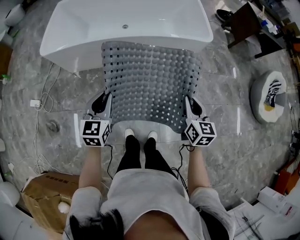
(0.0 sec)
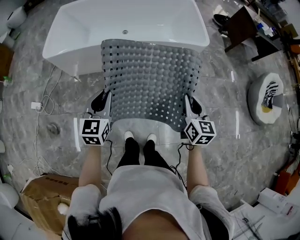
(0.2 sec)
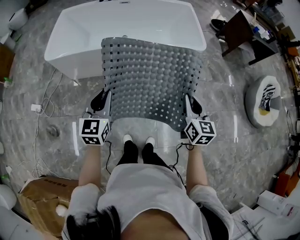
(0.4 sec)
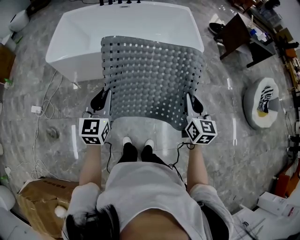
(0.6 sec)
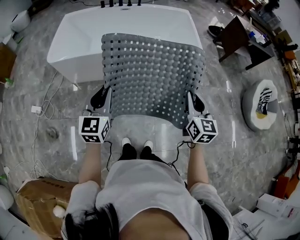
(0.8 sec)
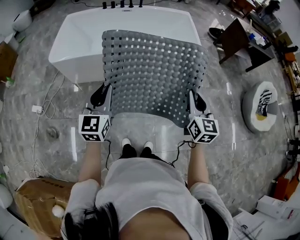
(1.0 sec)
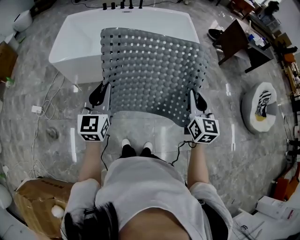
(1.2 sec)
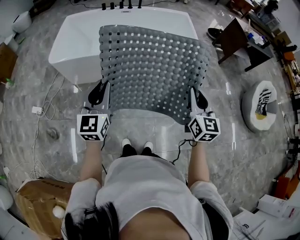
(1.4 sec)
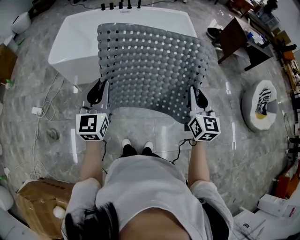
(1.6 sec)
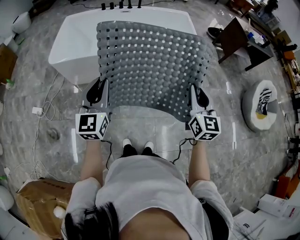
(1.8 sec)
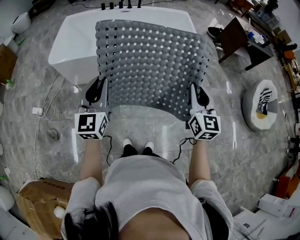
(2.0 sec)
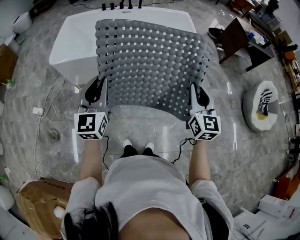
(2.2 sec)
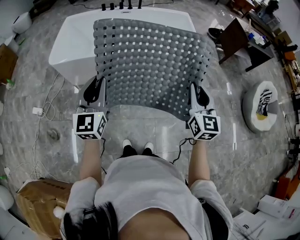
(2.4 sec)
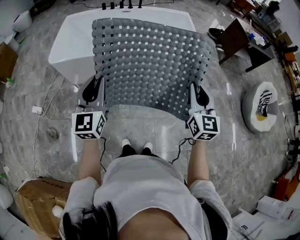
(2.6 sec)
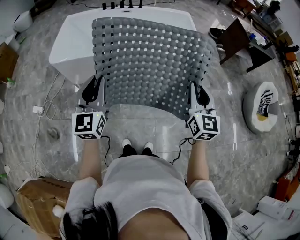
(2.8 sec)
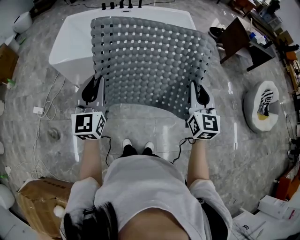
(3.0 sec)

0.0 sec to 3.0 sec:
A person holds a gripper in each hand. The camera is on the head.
0.0 sec to 1.6 sec: The grippers both shift upward by about 20 cm. The left gripper rotates roughly 20 degrees.
1.6 sec to 3.0 sec: The grippers make only small movements.

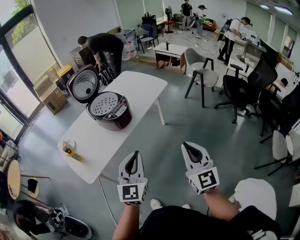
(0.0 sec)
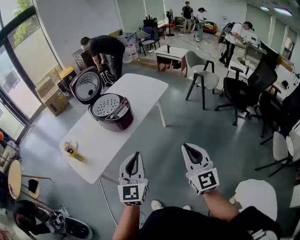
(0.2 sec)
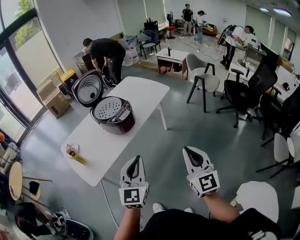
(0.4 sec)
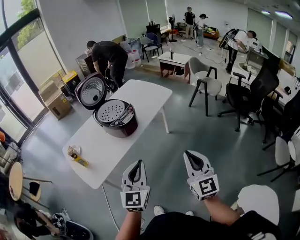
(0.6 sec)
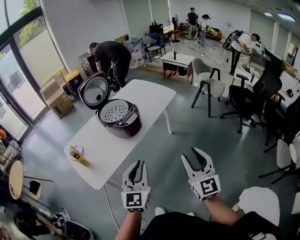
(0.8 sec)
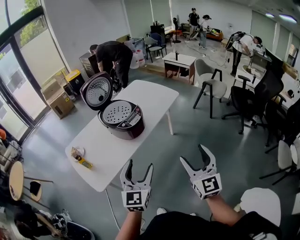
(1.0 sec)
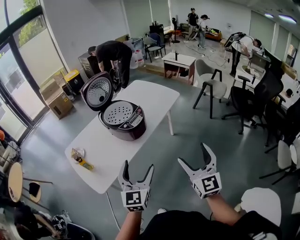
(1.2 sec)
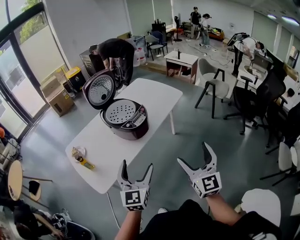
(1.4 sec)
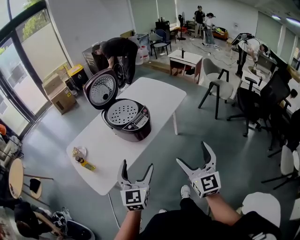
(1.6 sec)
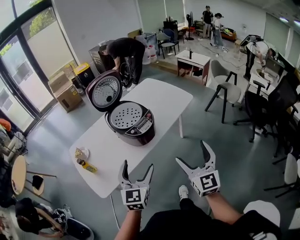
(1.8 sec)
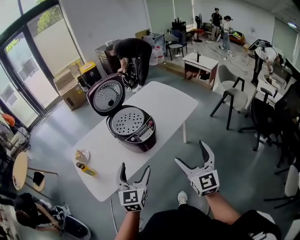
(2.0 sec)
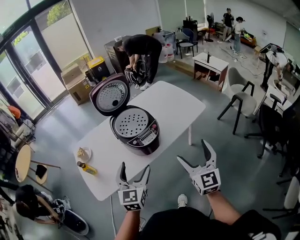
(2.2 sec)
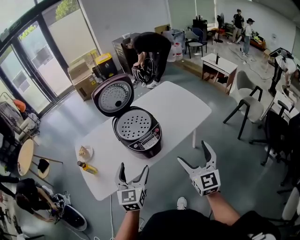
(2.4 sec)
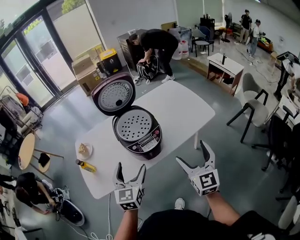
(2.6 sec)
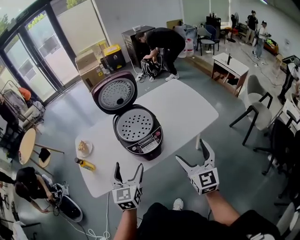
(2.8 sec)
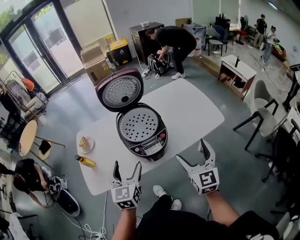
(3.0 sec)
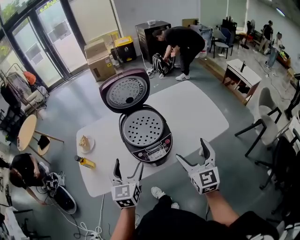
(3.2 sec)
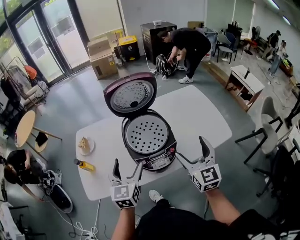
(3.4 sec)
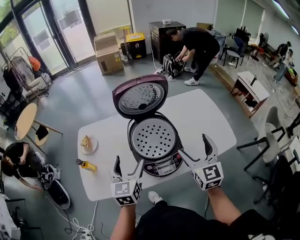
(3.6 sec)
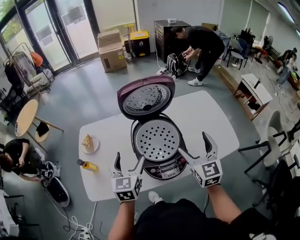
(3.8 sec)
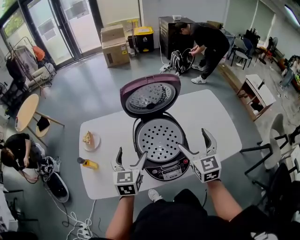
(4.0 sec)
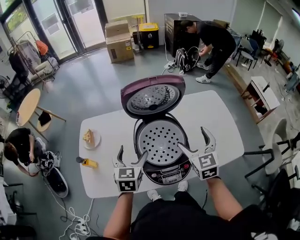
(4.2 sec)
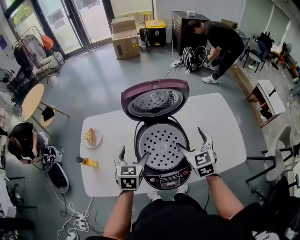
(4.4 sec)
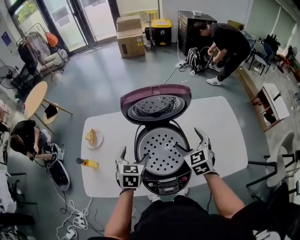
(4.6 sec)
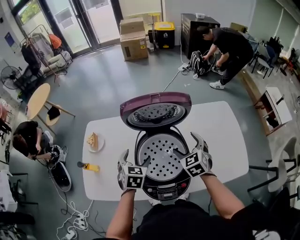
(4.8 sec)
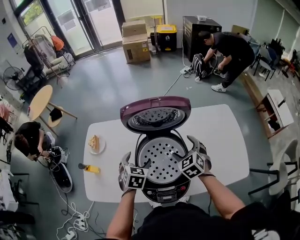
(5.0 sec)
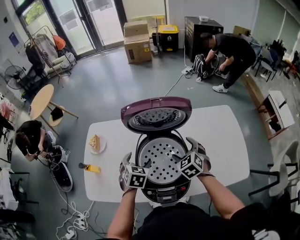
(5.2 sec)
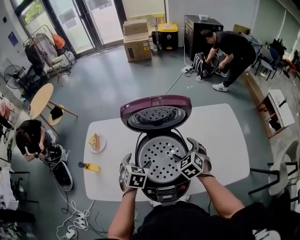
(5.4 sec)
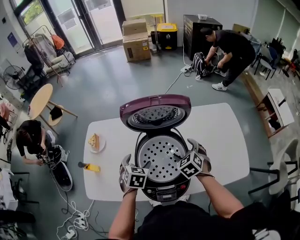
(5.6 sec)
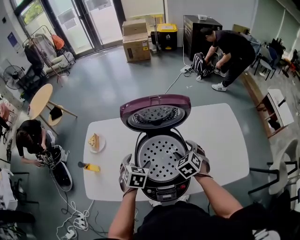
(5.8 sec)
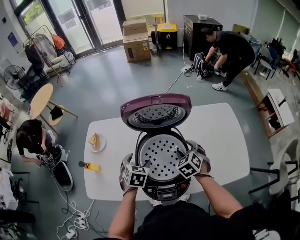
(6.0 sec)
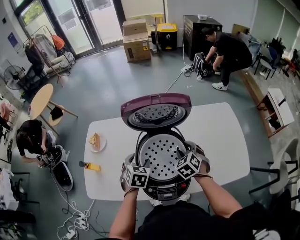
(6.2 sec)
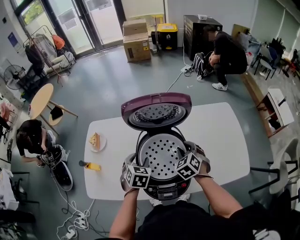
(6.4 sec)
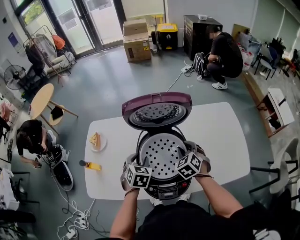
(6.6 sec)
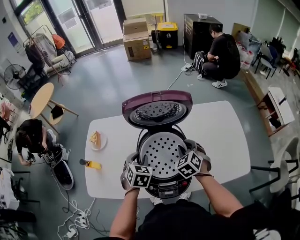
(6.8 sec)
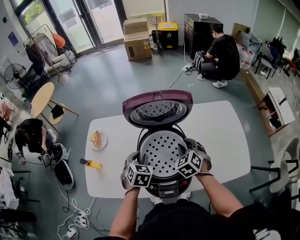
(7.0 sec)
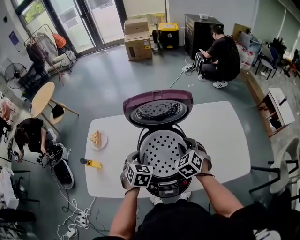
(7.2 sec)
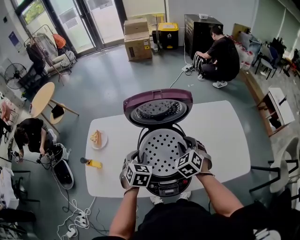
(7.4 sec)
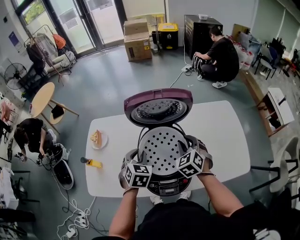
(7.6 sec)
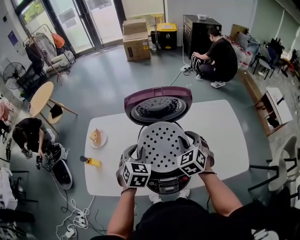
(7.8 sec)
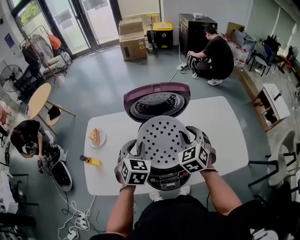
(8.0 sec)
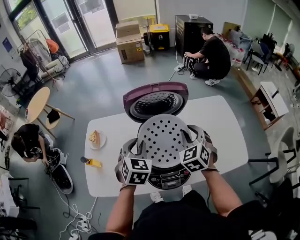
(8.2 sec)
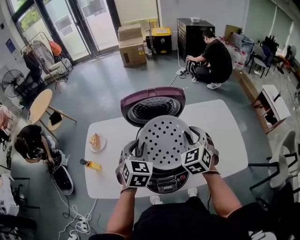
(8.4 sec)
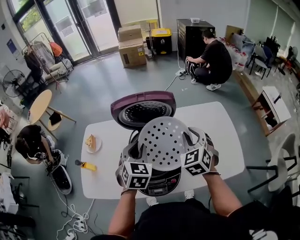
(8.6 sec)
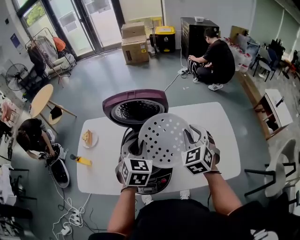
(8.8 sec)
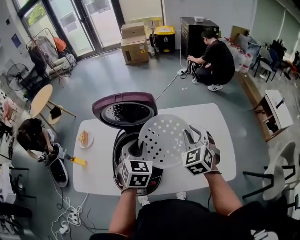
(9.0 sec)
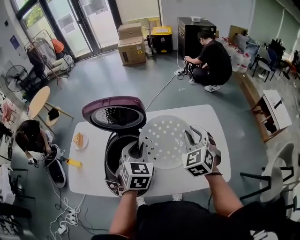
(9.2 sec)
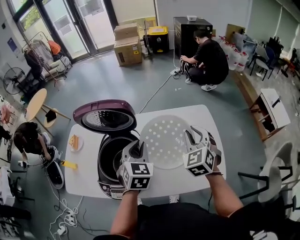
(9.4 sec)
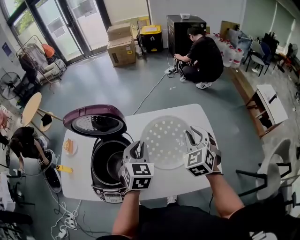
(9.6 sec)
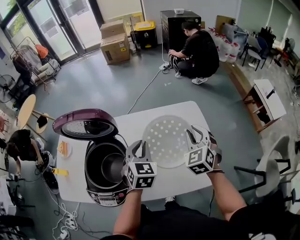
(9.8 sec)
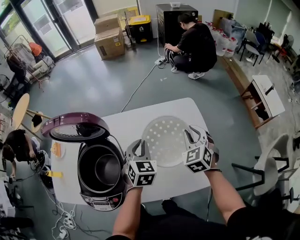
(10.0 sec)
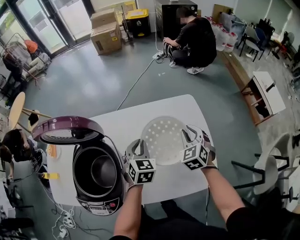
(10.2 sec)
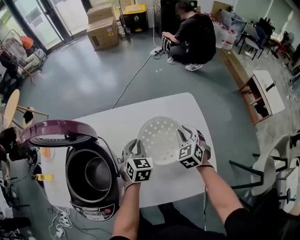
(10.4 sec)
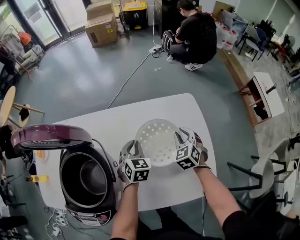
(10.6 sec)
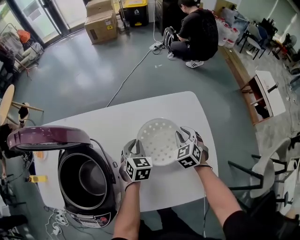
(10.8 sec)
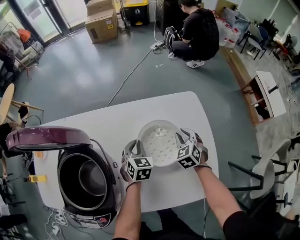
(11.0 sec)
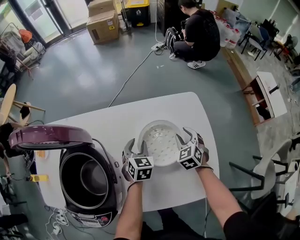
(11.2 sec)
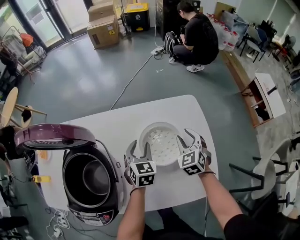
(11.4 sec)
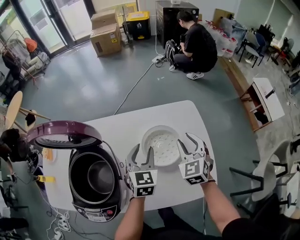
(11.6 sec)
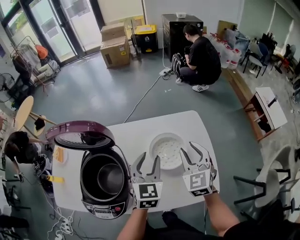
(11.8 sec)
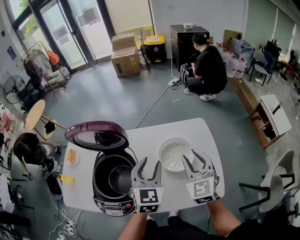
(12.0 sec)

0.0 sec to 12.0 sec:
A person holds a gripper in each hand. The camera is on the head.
0.0 sec to 1.6 sec: The left gripper goes some 15 cm to the left and forward, and opens. Meanwhile the right gripper shifts roughly 10 cm forward and to the left, and opens up.
1.6 sec to 3.0 sec: The left gripper ends up some 20 cm from where it was, and swivels approximately 30 degrees; the right gripper moves approximately 30 cm, and changes its angle by roughly 30 degrees.
3.0 sec to 4.4 sec: The grippers both shift forward by roughly 25 cm. The left gripper turns by some 20 degrees; the right gripper turns by some 30 degrees.
4.4 sec to 6.0 sec: The left gripper shifts some 5 cm downward. The right gripper is displaced downward by about 10 cm, turns by about 30 degrees, and closes up.
6.0 sec to 7.6 sec: The two grippers go roughly 5 cm upward. The left gripper closes.
7.6 sec to 9.0 sec: Both grippers travel together to the right and upward, roughly 20 cm.
9.0 sec to 10.4 sec: Both grippers travel together downward, to the right and forward, approximately 30 cm.
10.4 sec to 12.0 sec: The grippers both shift upward and backward by some 25 cm. The right gripper changes its angle by roughly 30 degrees.

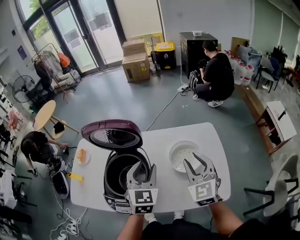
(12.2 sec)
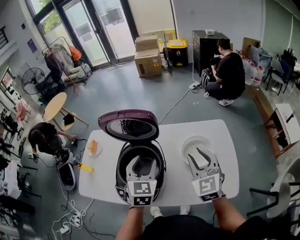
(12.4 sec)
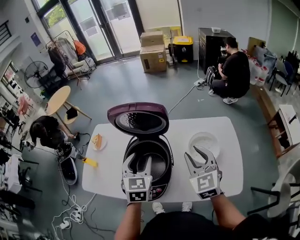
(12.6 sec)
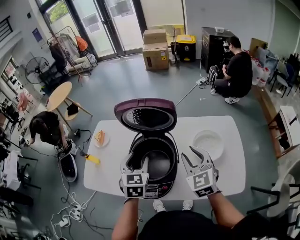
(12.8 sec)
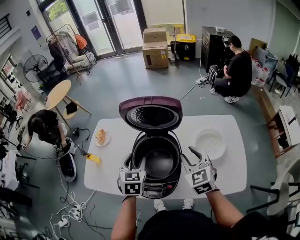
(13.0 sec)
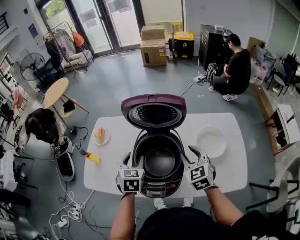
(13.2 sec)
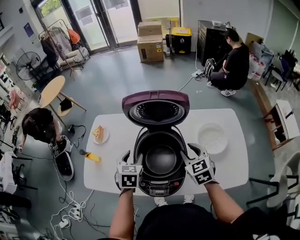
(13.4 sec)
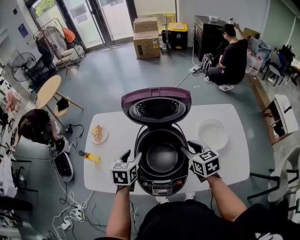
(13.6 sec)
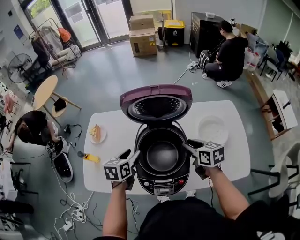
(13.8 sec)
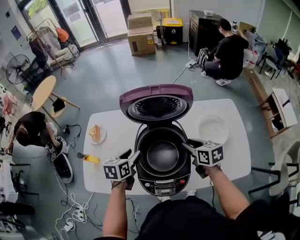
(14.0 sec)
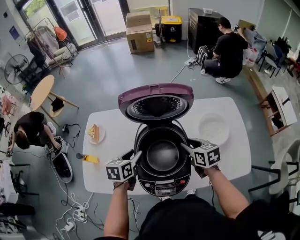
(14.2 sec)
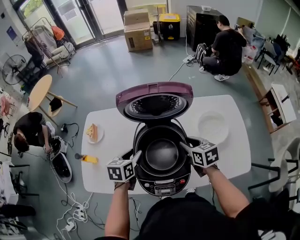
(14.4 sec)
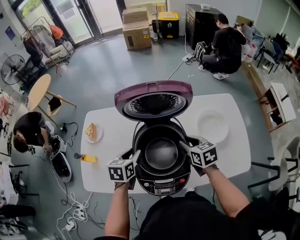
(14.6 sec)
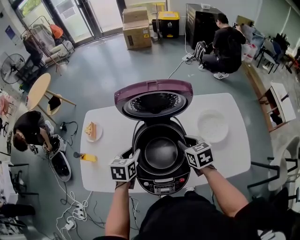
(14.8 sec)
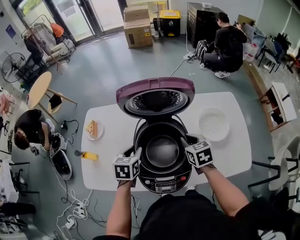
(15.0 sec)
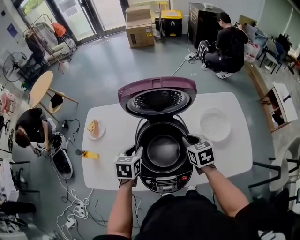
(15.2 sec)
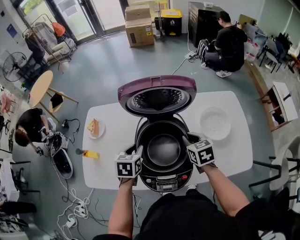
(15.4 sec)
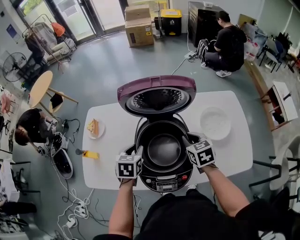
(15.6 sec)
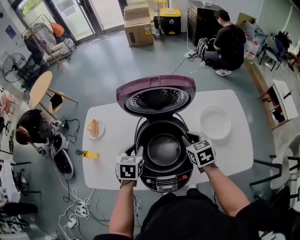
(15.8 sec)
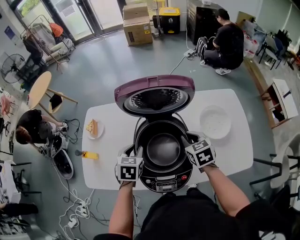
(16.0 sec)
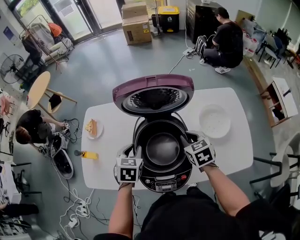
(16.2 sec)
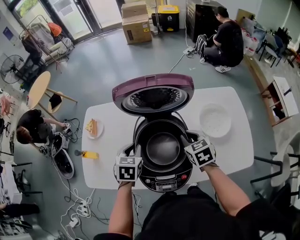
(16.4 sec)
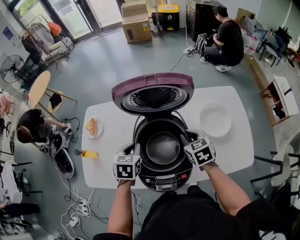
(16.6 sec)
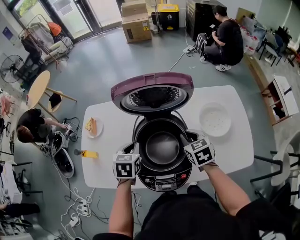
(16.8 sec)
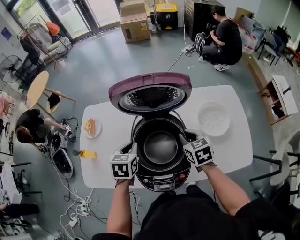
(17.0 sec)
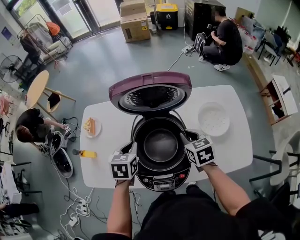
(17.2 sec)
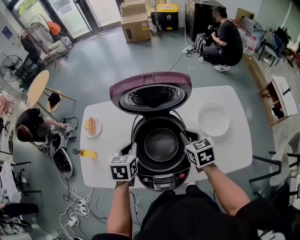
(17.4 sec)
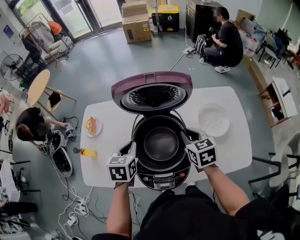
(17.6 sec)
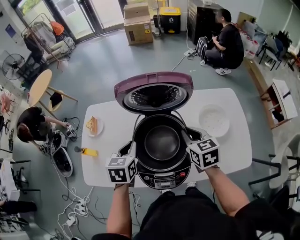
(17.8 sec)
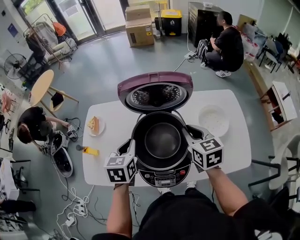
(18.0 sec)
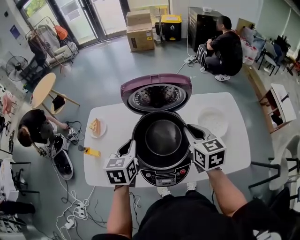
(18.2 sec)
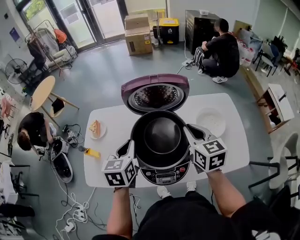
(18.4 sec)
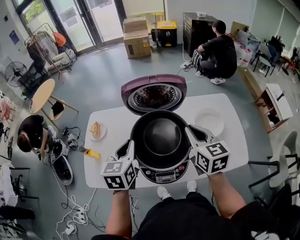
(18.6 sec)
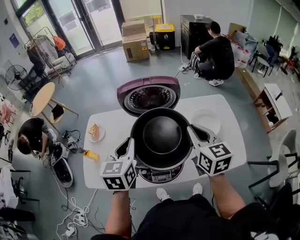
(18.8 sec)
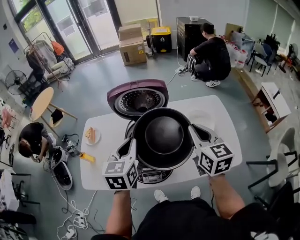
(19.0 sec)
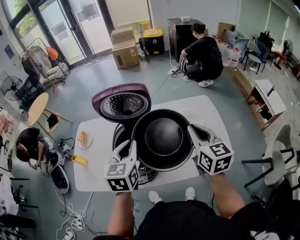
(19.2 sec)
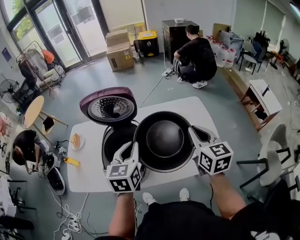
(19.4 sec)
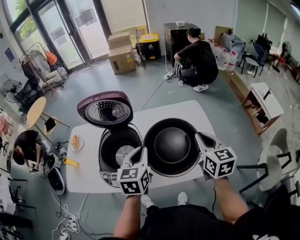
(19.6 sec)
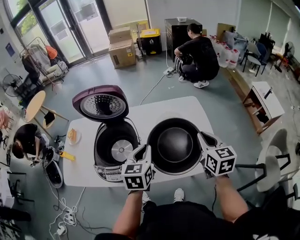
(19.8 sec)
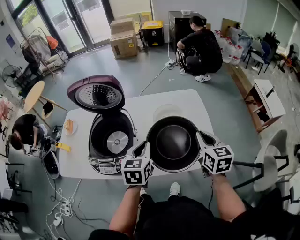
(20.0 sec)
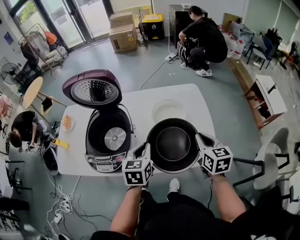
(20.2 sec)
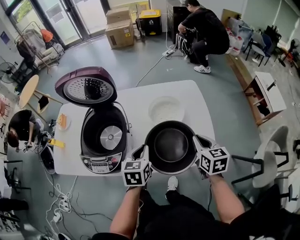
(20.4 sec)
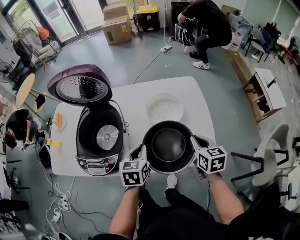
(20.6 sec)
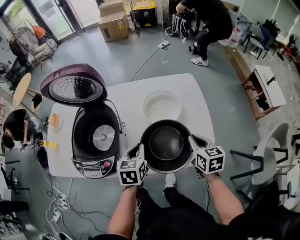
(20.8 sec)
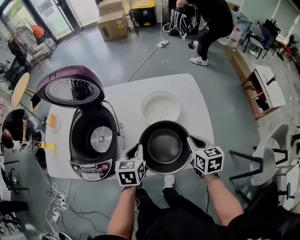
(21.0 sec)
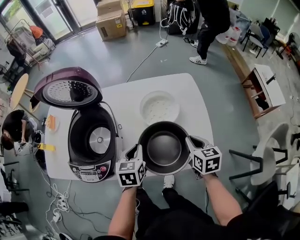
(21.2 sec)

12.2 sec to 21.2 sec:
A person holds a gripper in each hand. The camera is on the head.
12.2 sec to 13.8 sec: Both grippers travel together to the left and downward, some 30 cm. The right gripper rotates around the line of its fingers by about 40 degrees, clockwise from behind. Meanwhile the left gripper turns by about 40 degrees.
13.8 sec to 15.2 sec: The grippers stay close to where they were, moving slightly.
15.2 sec to 16.6 sec: There are only small adjustments of the grippers.
16.6 sec to 18.2 sec: The two grippers go some 10 cm upward. The right gripper turns by approximately 20 degrees.
18.2 sec to 19.8 sec: Both grippers travel together to the right, about 30 cm.
19.8 sec to 21.2 sec: The grippers both shift downward by about 20 cm.
